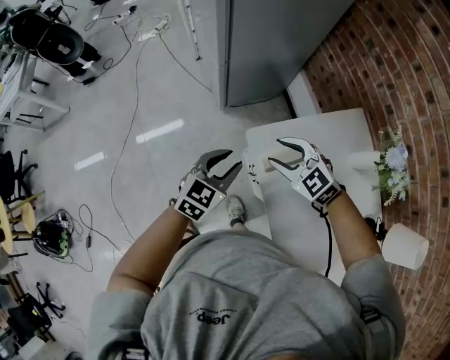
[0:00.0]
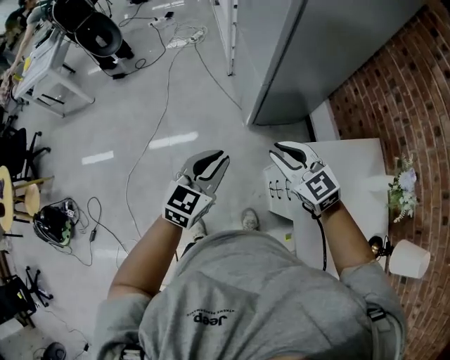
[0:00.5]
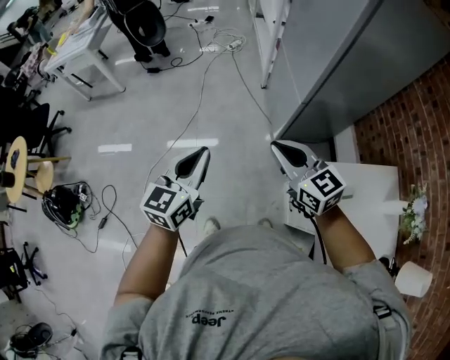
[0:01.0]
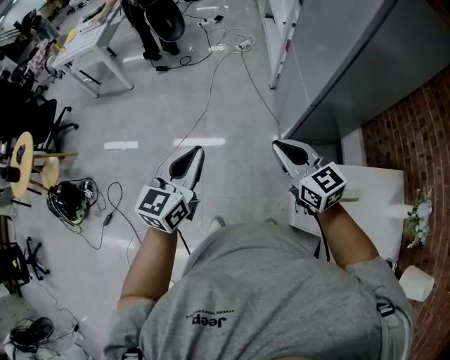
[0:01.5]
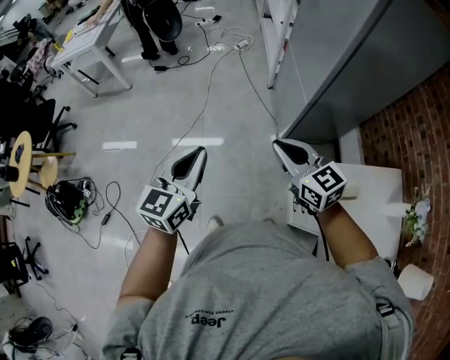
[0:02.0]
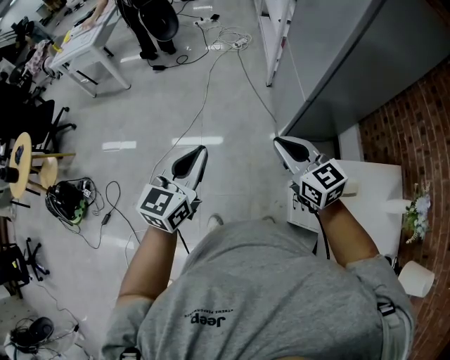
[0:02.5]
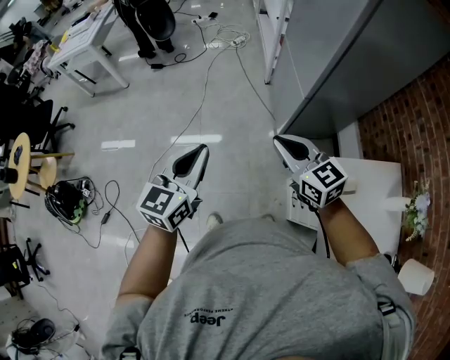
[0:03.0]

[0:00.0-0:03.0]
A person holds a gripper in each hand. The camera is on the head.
0.0 to 1.5 s: The two grippers go approximately 40 cm to the left and upward. The left gripper changes its angle by about 40 degrees, while the right gripper swivels approximately 30 degrees, and closes its fingers.
1.5 to 3.0 s: There are only small adjustments of the grippers.

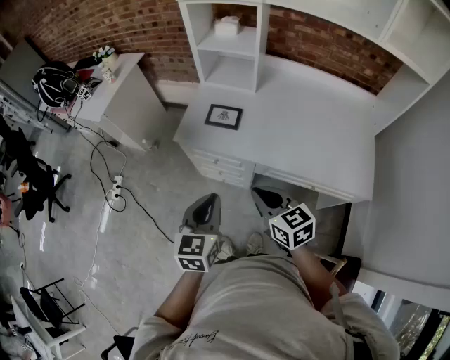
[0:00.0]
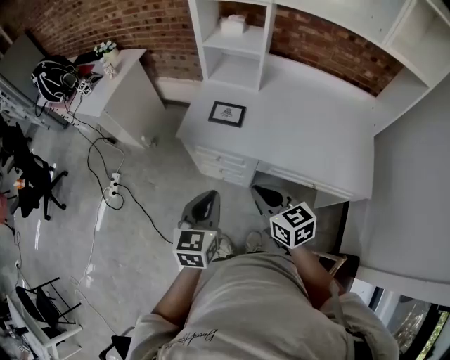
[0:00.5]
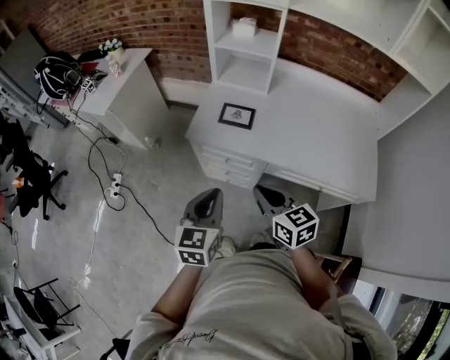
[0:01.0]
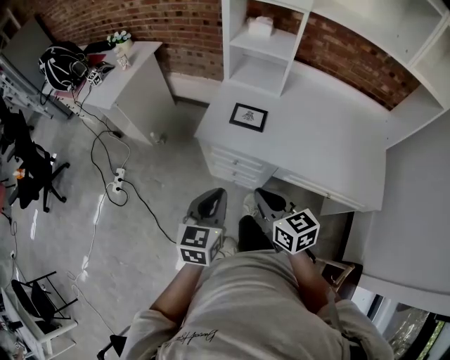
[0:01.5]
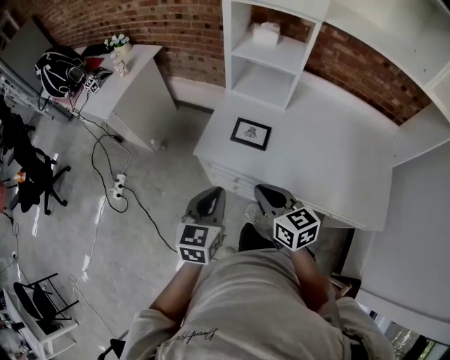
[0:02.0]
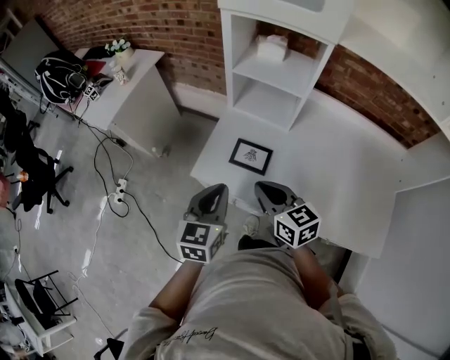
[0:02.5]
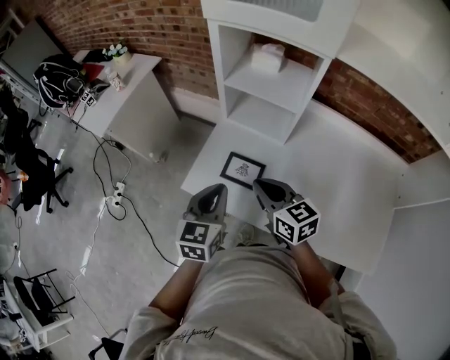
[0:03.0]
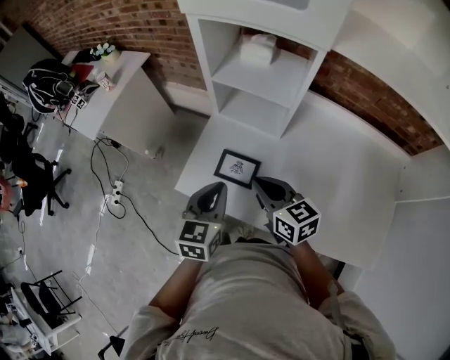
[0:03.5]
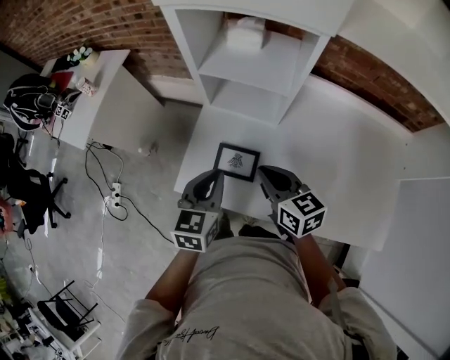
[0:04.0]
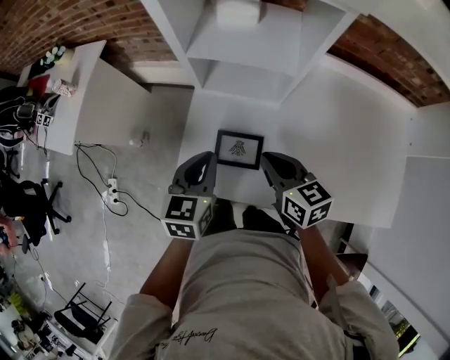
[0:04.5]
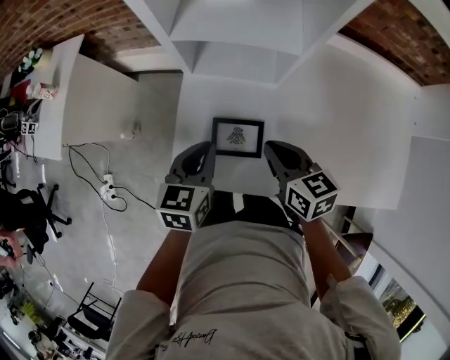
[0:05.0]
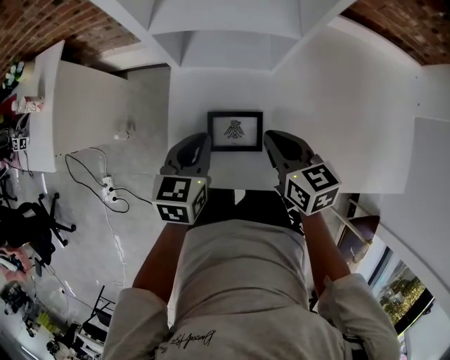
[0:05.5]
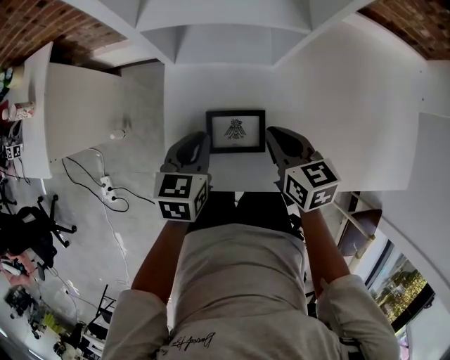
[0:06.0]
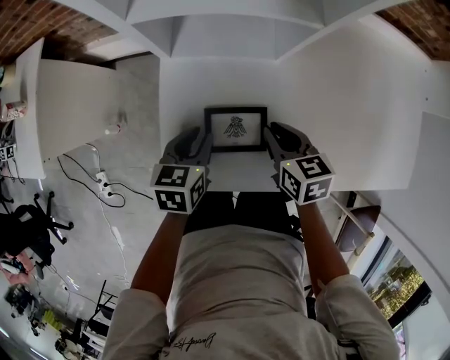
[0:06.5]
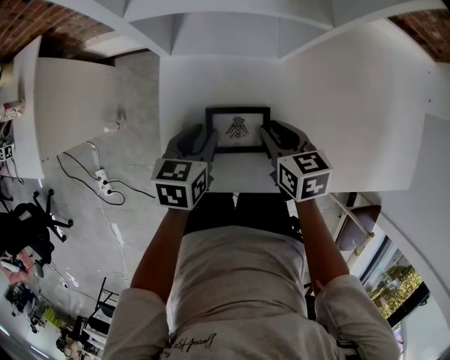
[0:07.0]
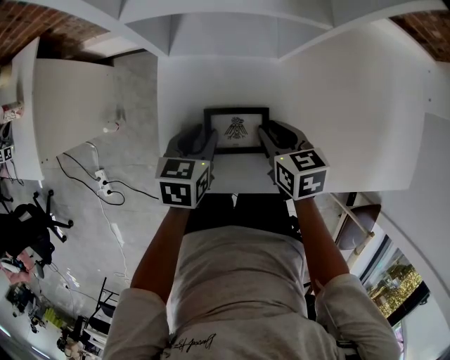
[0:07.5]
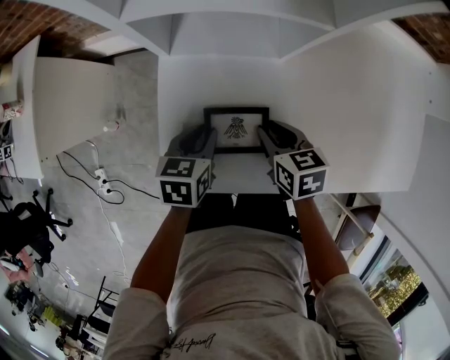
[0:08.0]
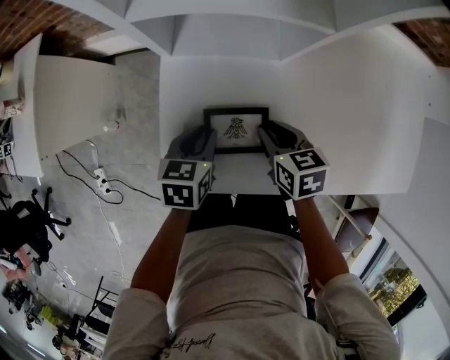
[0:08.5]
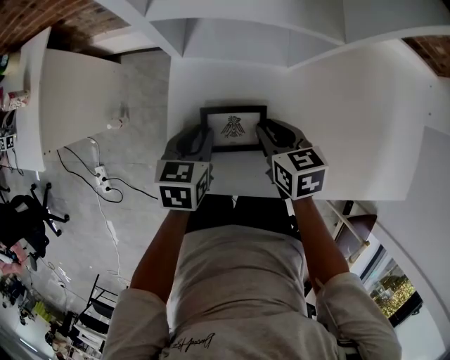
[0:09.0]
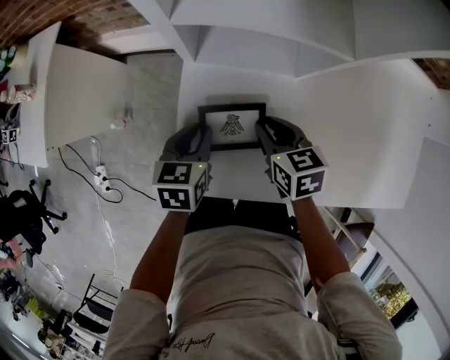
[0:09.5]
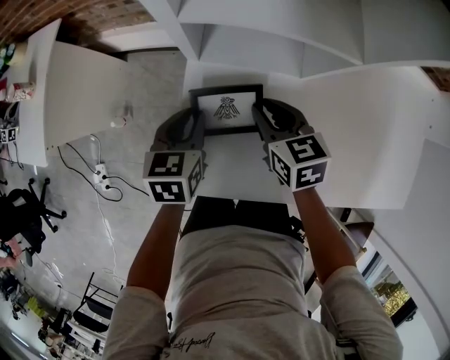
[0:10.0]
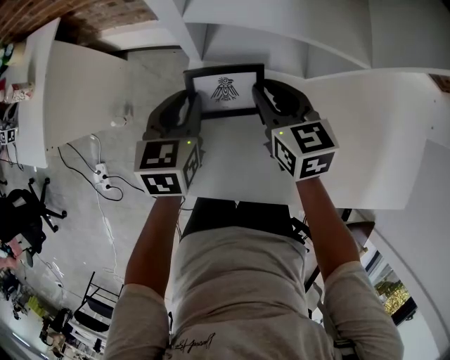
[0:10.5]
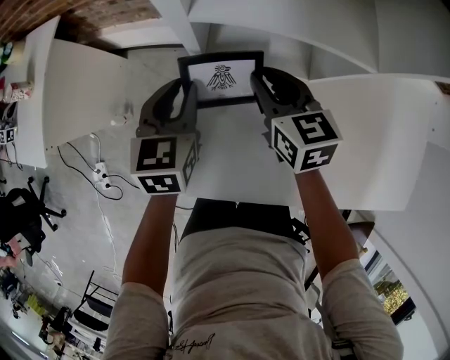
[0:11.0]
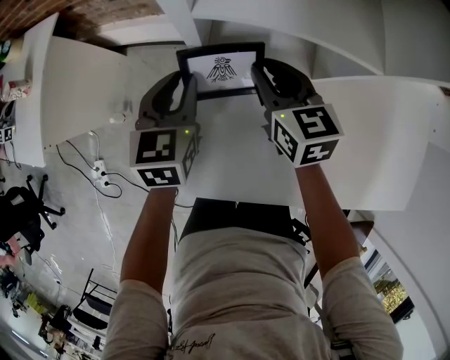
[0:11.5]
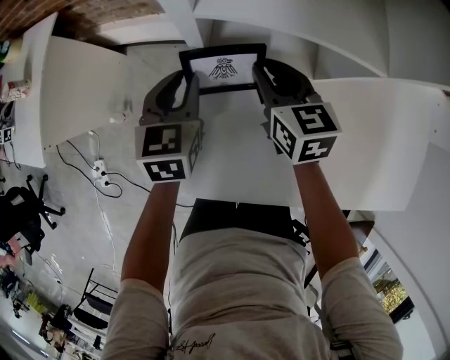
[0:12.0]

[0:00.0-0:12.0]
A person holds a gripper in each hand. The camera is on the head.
0.0 to 2.0 s: The grippers both shift forward and to the left by roughly 15 cm.
2.0 to 4.0 s: The two grippers go approximately 25 cm forward and to the right.
4.0 to 6.0 s: The left gripper goes roughly 20 cm downward and forward, and changes its angle by about 20 degrees, while the right gripper travels downward by approximately 15 cm, and turns by roughly 20 degrees.
6.0 to 8.0 s: Both grippers move downward, some 5 cm.
8.0 to 10.0 s: The left gripper is displaced to the left, forward and upward by some 10 cm. Meanwhile the right gripper heads forward, to the left and upward, covering about 15 cm.
10.0 to 12.0 s: The grippers both shift forward by about 10 cm.

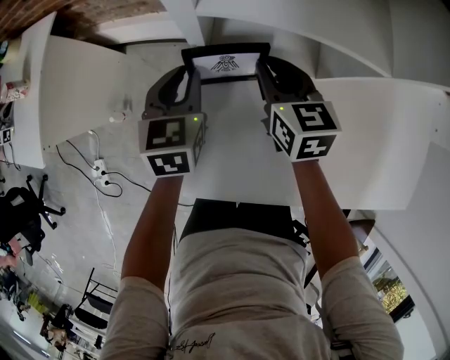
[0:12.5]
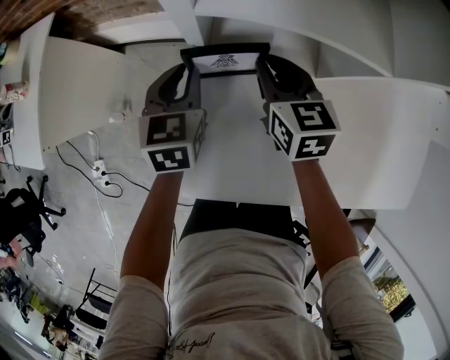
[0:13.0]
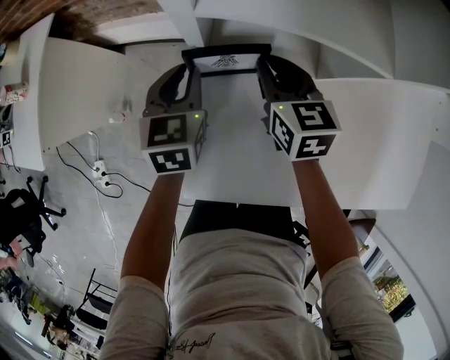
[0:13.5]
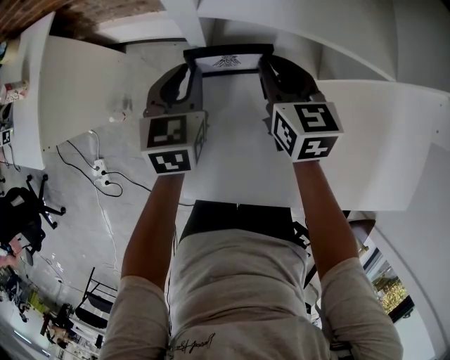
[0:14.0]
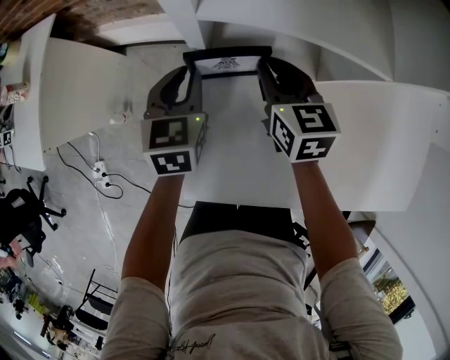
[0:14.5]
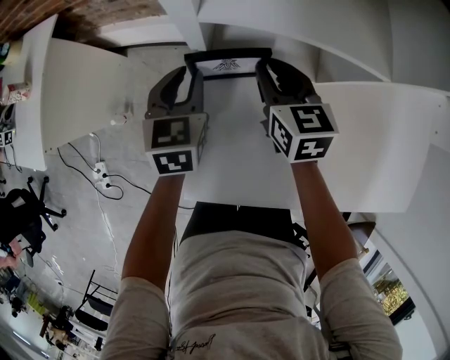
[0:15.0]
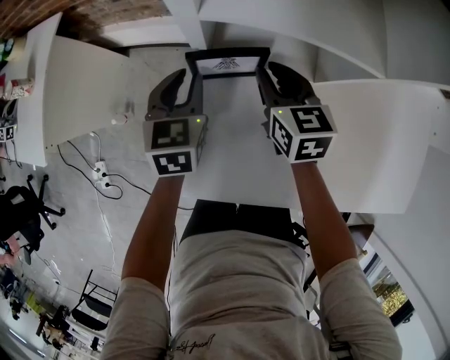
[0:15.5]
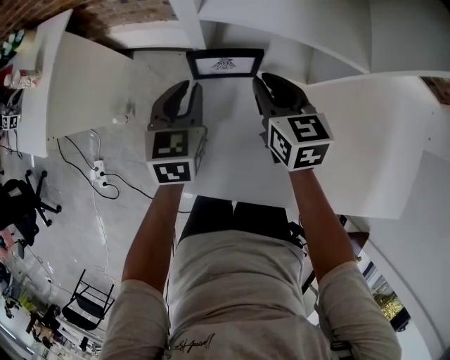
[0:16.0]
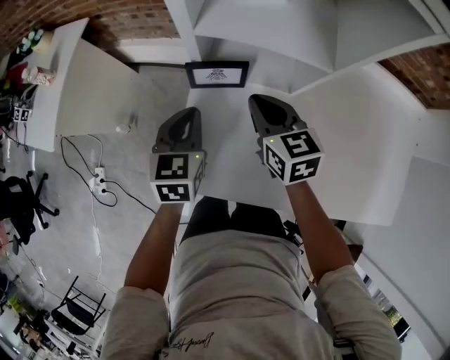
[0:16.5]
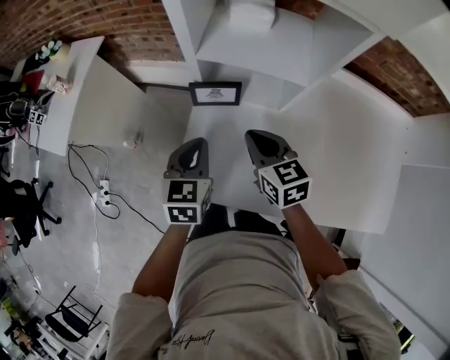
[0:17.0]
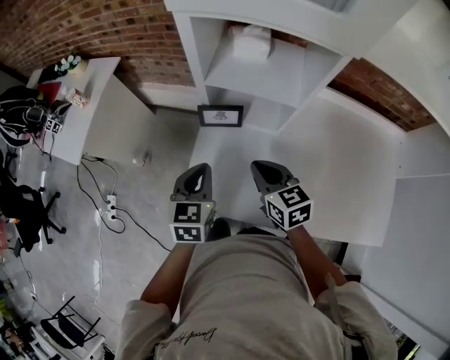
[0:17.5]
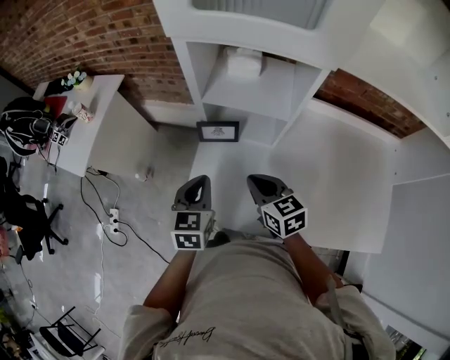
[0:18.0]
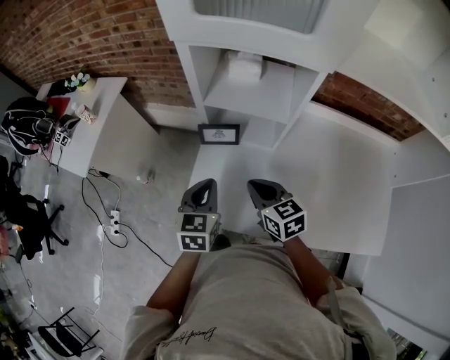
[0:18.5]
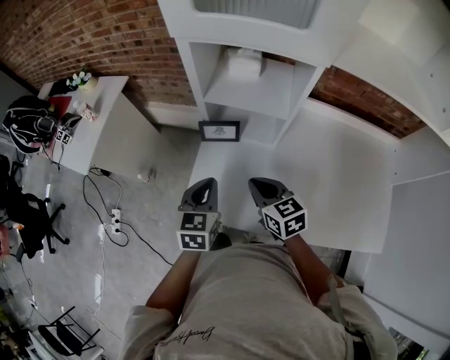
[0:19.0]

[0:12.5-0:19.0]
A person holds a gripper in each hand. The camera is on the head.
12.5 to 14.5 s: The two grippers keep their place.
14.5 to 17.0 s: Both grippers move backward and upward, some 20 cm.
17.0 to 19.0 s: The right gripper shifts approximately 10 cm backward. The left gripper travels backward and upward by approximately 10 cm.

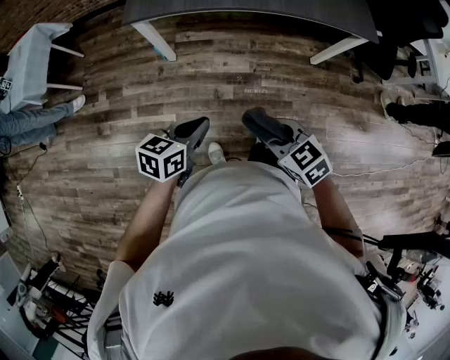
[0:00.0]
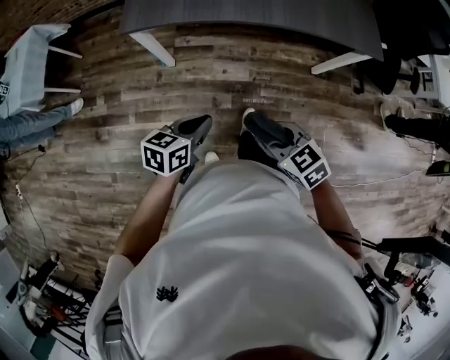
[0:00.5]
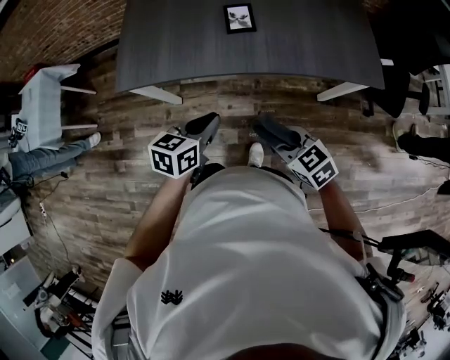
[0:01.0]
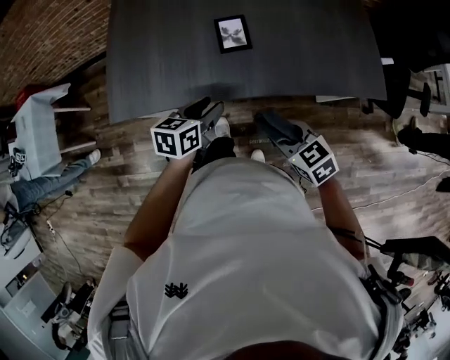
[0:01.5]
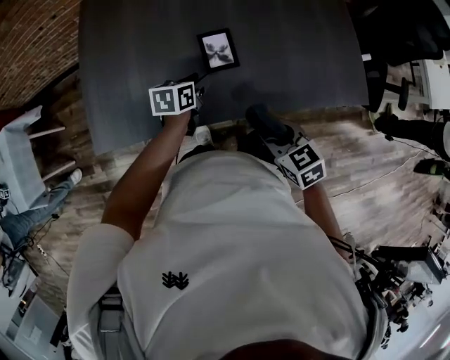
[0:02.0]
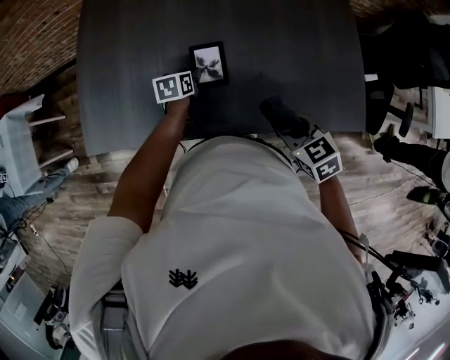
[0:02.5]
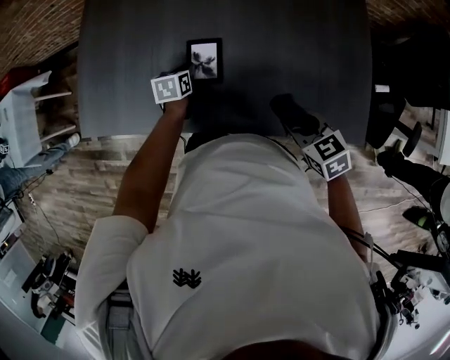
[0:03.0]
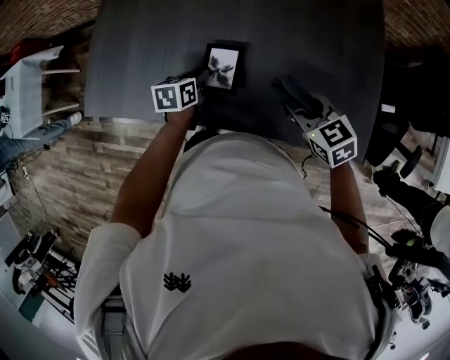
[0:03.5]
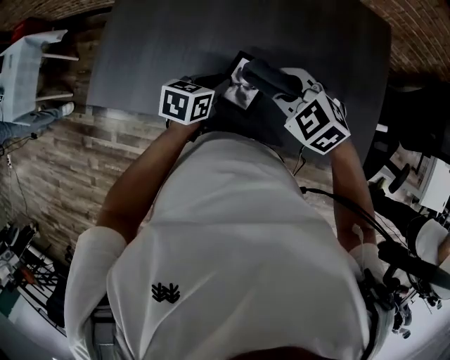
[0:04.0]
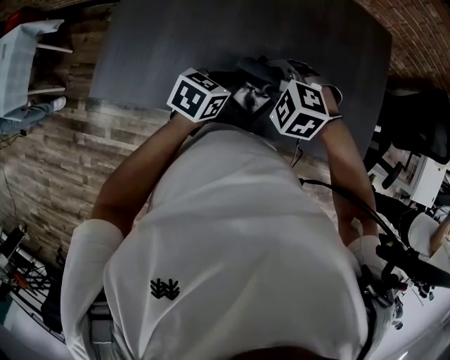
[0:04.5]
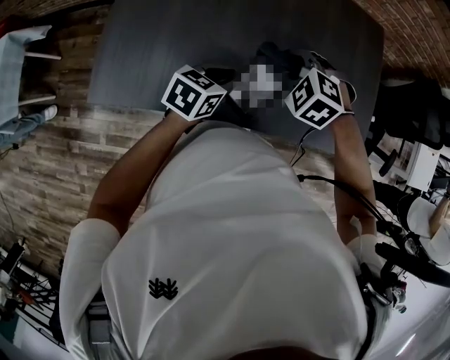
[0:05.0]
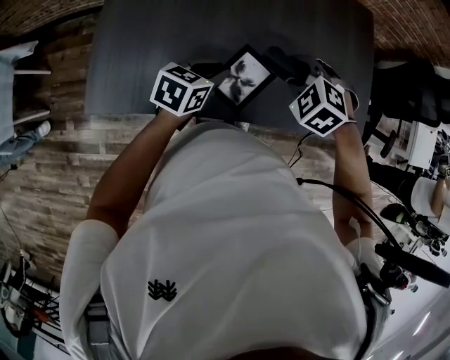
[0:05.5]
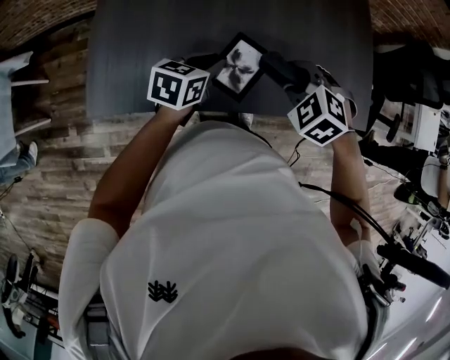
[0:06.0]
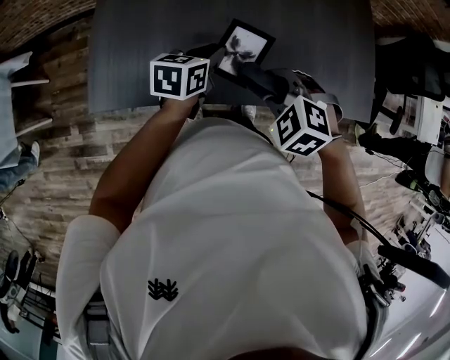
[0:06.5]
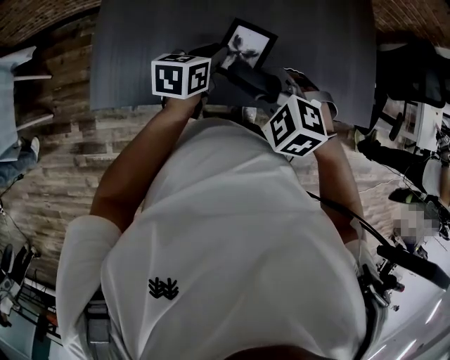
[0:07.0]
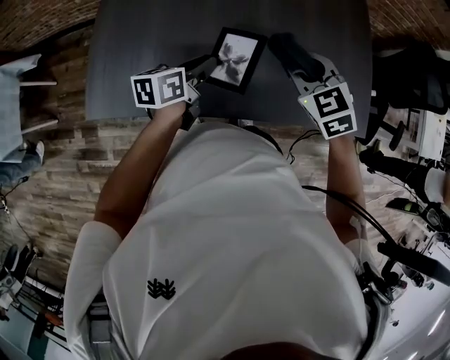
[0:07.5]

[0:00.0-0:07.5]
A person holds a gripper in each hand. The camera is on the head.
0.0 to 2.0 s: The two grippers travel together, forward, approximately 60 cm. The left gripper opens its fingers, while the right gripper turns by some 20 degrees.
2.0 to 4.0 s: The left gripper travels to the right by some 5 cm, reaches approximately 10 cm downward, then returns, and closes its fingers; the right gripper shifts some 20 cm forward, reaches roughly 20 cm to the right, then returns, and rotates around the line of its fingers by roughly 50 degrees, counterclockwise from behind.
4.0 to 5.5 s: The right gripper shifts by roughly 10 cm, and changes its angle by roughly 30 degrees, while the left gripper shifts by approximately 10 cm.
5.5 to 7.5 s: The left gripper turns by about 30 degrees. The right gripper moves to the right, about 5 cm, moves some 10 cm backward and comes back, and turns by some 40 degrees.
